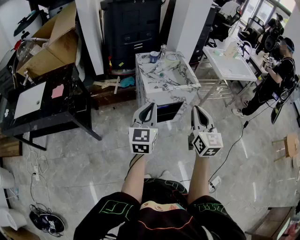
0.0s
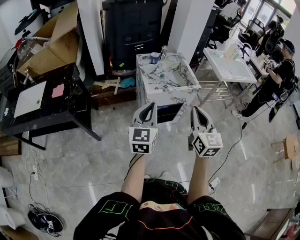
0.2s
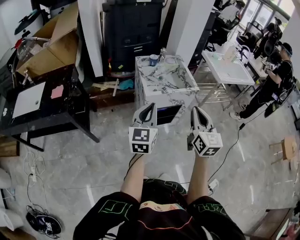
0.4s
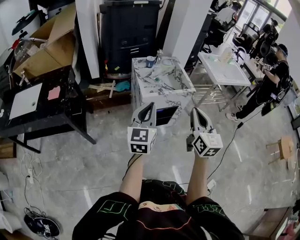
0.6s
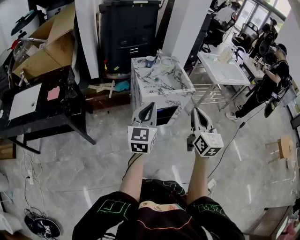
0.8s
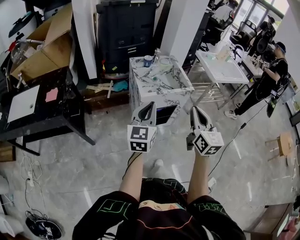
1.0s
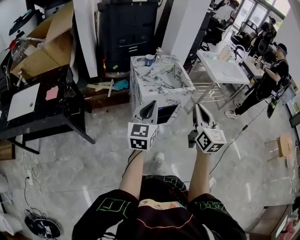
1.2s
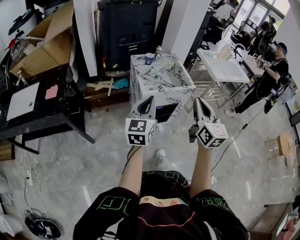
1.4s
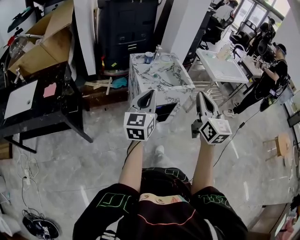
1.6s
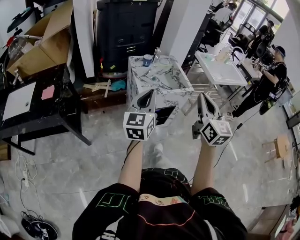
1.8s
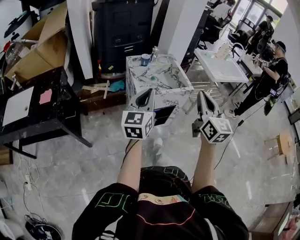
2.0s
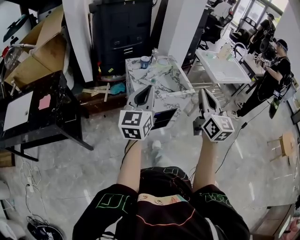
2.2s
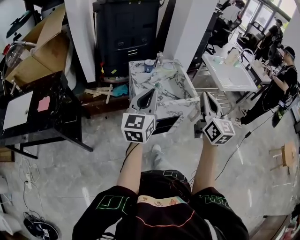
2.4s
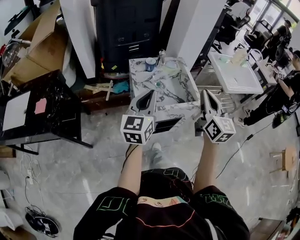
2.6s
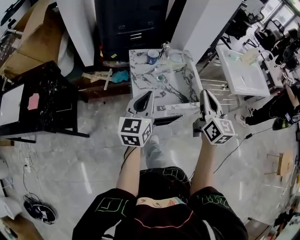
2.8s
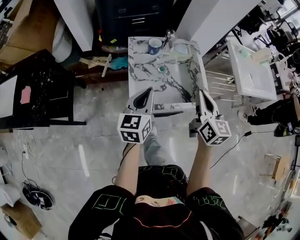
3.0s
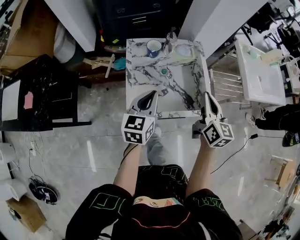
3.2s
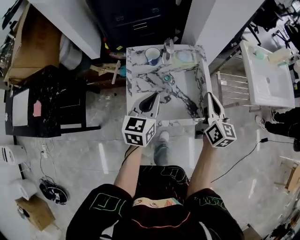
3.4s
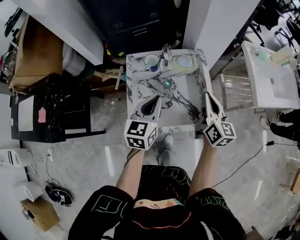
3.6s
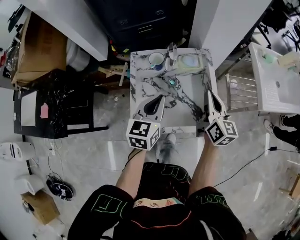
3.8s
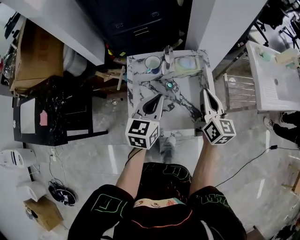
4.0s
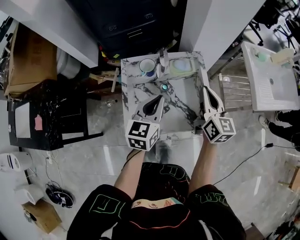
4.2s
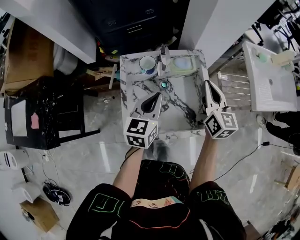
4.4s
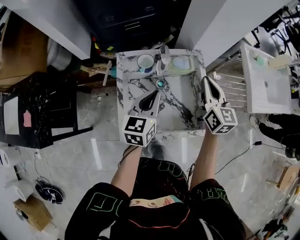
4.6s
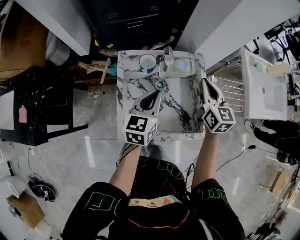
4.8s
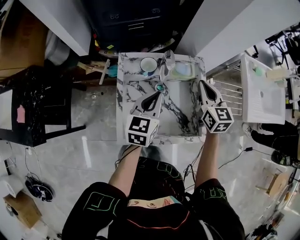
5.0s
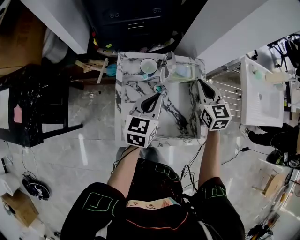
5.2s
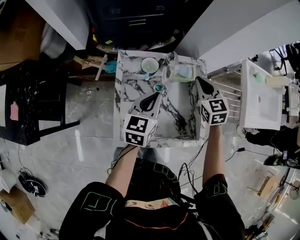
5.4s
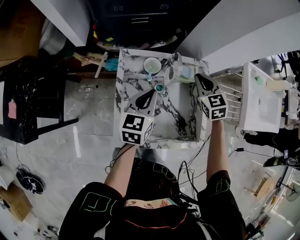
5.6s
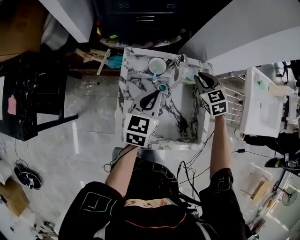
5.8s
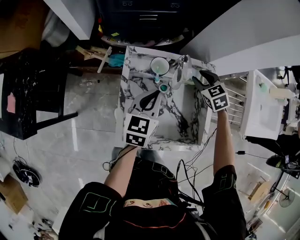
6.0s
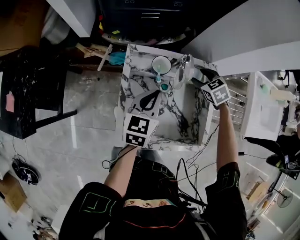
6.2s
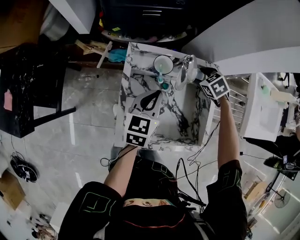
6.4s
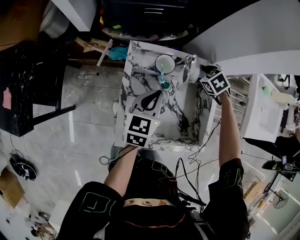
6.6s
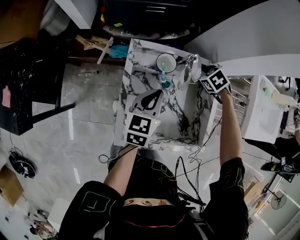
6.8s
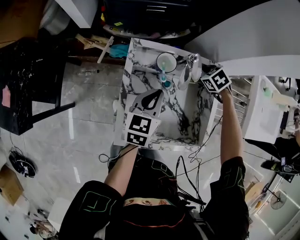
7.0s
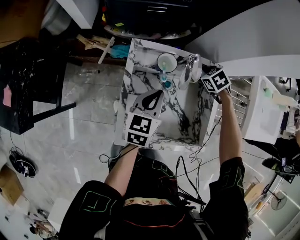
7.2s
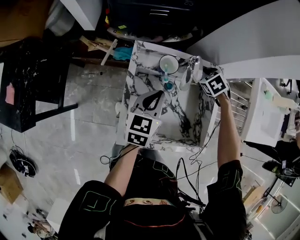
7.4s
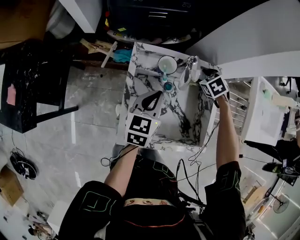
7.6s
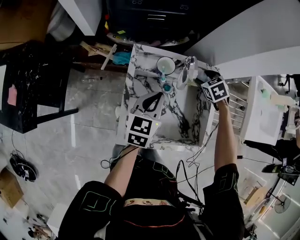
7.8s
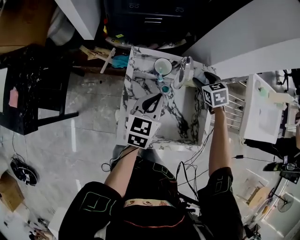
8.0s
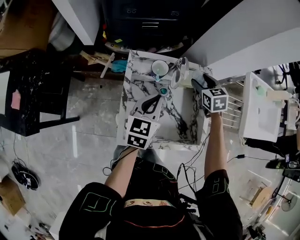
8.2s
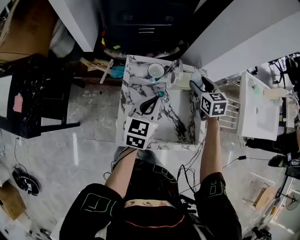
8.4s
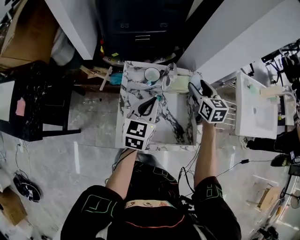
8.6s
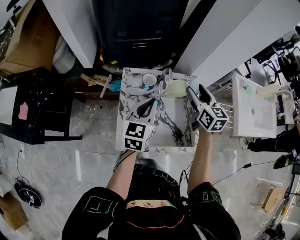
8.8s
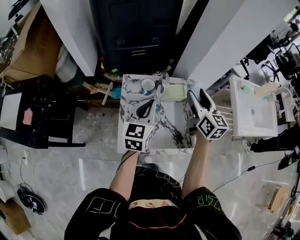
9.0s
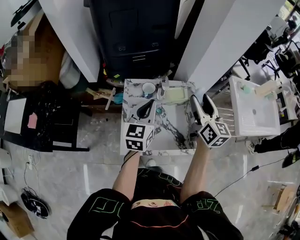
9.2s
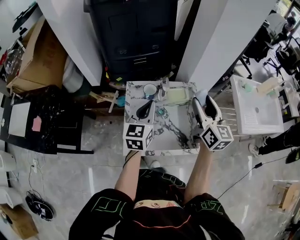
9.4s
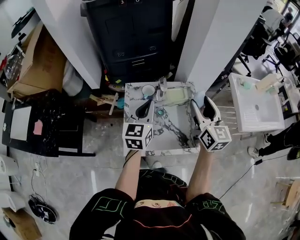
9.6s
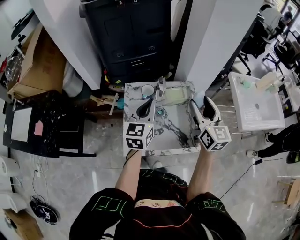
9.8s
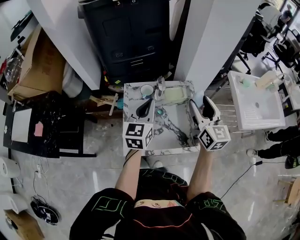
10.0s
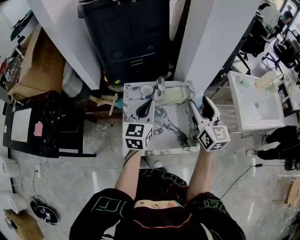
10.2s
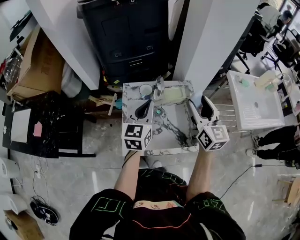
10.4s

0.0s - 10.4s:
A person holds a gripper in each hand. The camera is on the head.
0.0s - 1.4s: The grippers move only a little.
1.4s - 3.0s: The right gripper shifts roughly 35 cm forward; the left gripper travels forward and downward by some 35 cm.
3.0s - 4.4s: The right gripper shifts about 20 cm forward, while the left gripper shifts some 20 cm forward and to the right.
4.4s - 6.0s: The left gripper moves forward, downward and to the left, about 10 cm, while the right gripper travels downward, forward and to the left by some 20 cm, tips its fingers downward by about 40 degrees, and opens its fingers.
6.0s - 7.4s: The right gripper shifts some 5 cm downward, changes its angle by about 20 degrees, and opens.
7.4s - 9.0s: The left gripper goes some 15 cm upward, while the right gripper is displaced upward by some 30 cm, and angles its fingers upward, by roughly 70 degrees.
9.0s - 10.4s: The right gripper travels backward by approximately 5 cm.

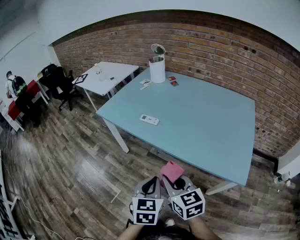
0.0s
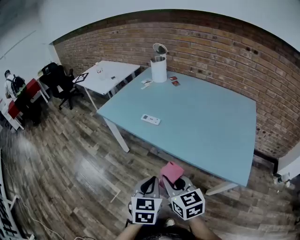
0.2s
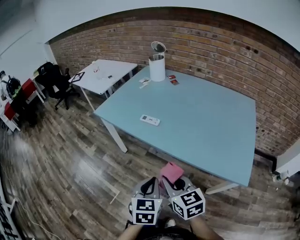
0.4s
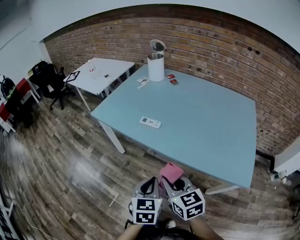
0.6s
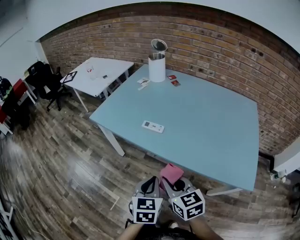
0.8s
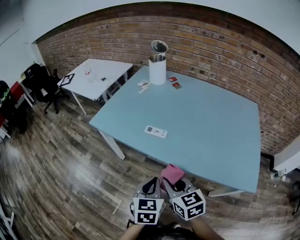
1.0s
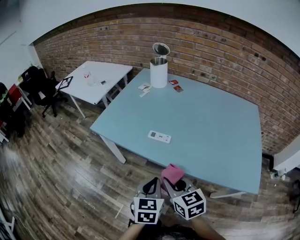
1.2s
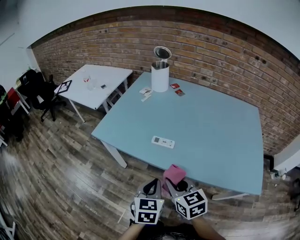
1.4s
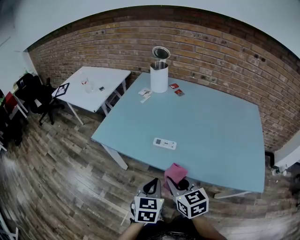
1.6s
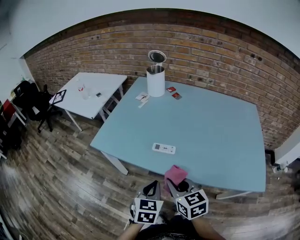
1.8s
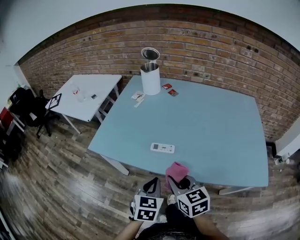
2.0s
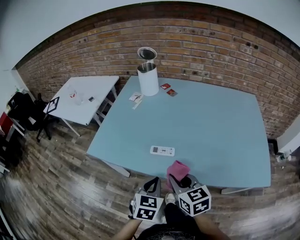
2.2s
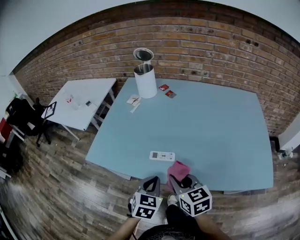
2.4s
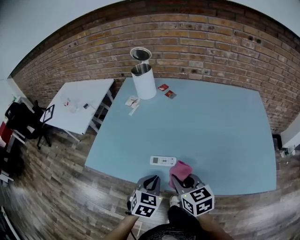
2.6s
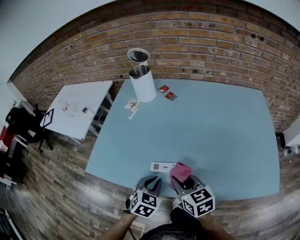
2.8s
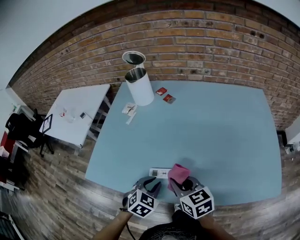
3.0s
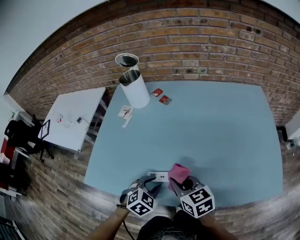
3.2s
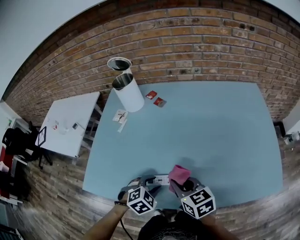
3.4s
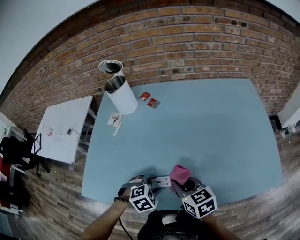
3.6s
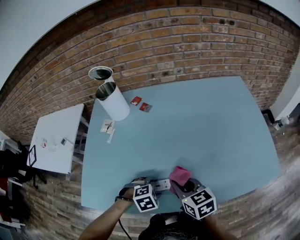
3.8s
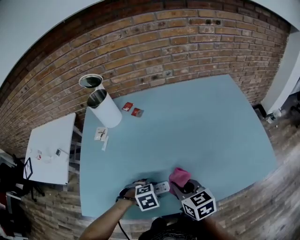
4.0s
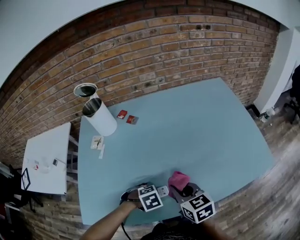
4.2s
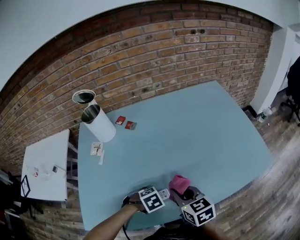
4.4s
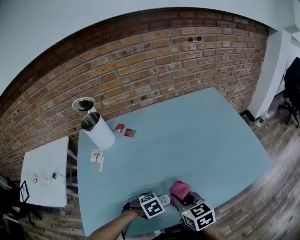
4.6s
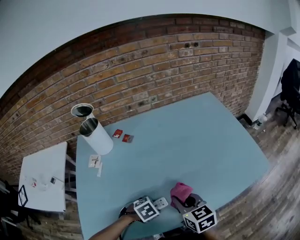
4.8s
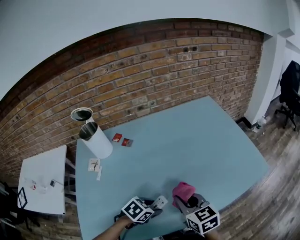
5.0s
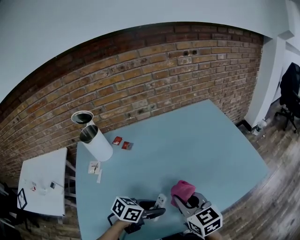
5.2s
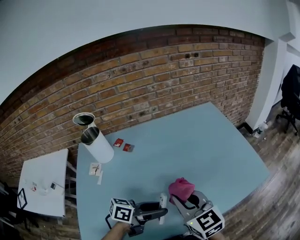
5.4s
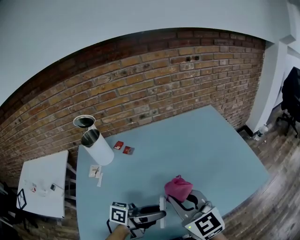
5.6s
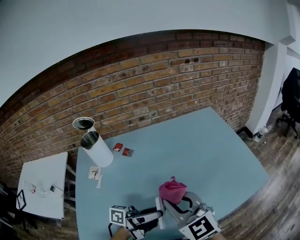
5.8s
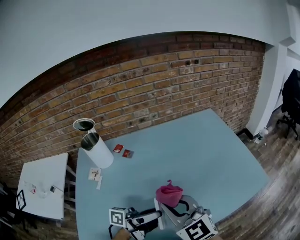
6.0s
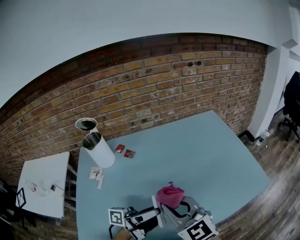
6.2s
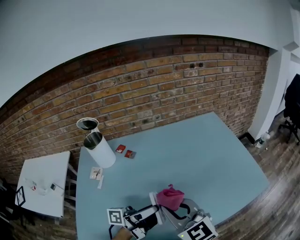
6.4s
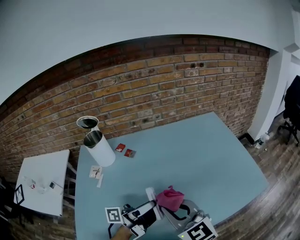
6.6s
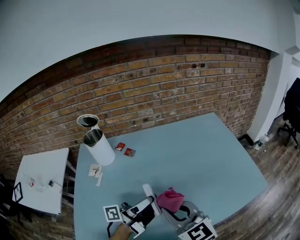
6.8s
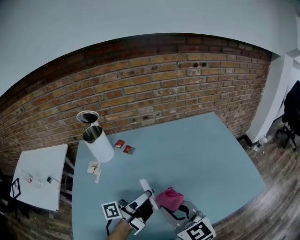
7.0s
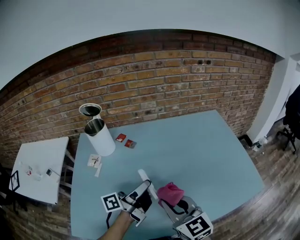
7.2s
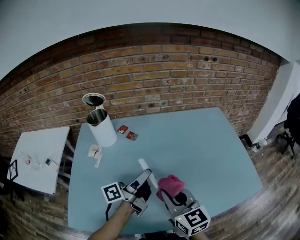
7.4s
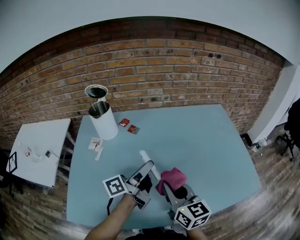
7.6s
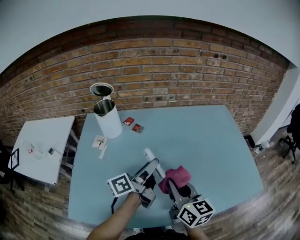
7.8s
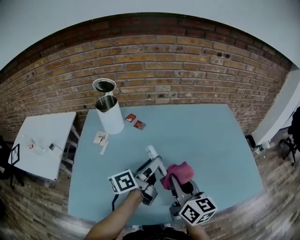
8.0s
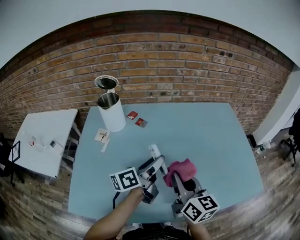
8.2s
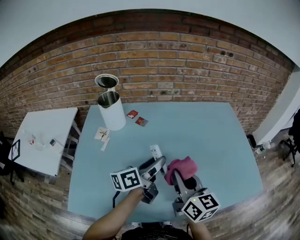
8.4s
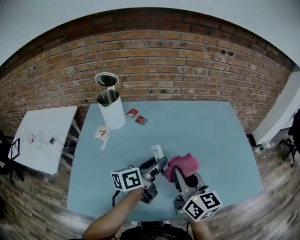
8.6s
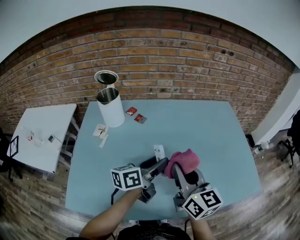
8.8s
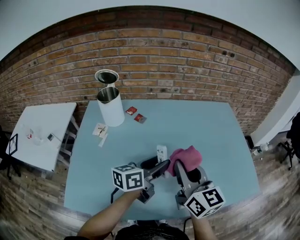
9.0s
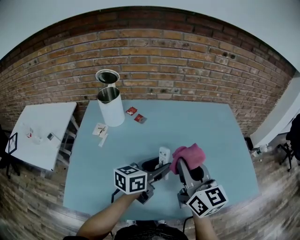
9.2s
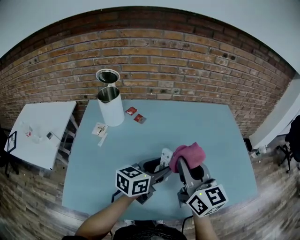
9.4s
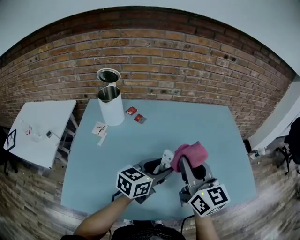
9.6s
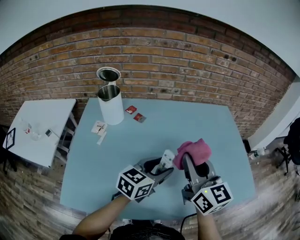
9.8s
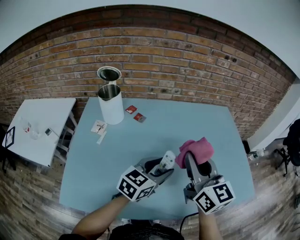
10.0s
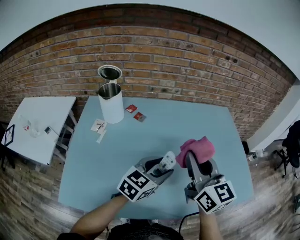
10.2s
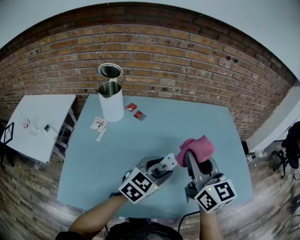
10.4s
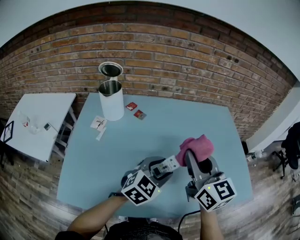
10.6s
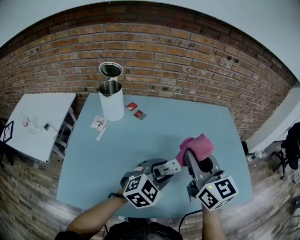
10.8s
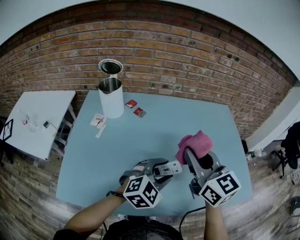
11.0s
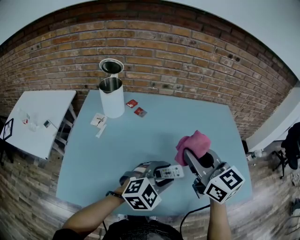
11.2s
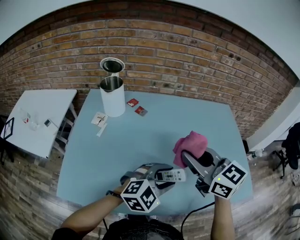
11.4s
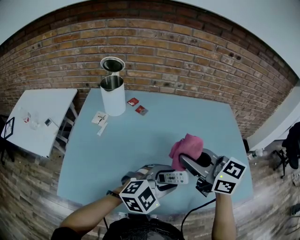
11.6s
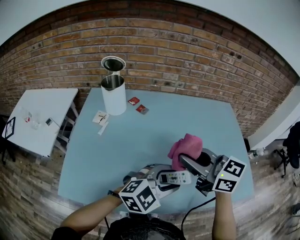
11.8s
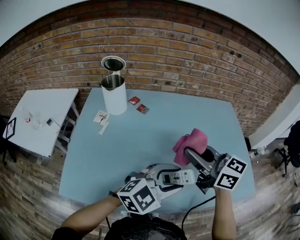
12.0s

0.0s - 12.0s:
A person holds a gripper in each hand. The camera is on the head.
0.0s - 1.6s: Both grippers move forward and to the left, roughly 25 cm.
1.6s - 3.0s: The left gripper heads forward and downward, covering approximately 20 cm, swivels about 40 degrees, and opens up. The right gripper goes some 15 cm forward.
3.0s - 4.4s: The right gripper moves roughly 5 cm, and turns by some 30 degrees. The left gripper heads downward, covering approximately 5 cm, rotates roughly 60 degrees, and opens up.
4.4s - 6.0s: Both grippers move upward, roughly 20 cm. The right gripper changes its angle by about 40 degrees. The left gripper tips its fingers upward by approximately 100 degrees.
6.0s - 7.6s: The right gripper is displaced downward by some 5 cm, and changes its angle by approximately 30 degrees, while the left gripper moves forward and to the left, some 15 cm, and turns by some 40 degrees.
7.6s - 9.0s: The left gripper rotates some 40 degrees; the right gripper is displaced upward by approximately 5 cm.
9.0s - 10.4s: The left gripper rotates around the line of its fingers by roughly 40 degrees, clockwise from behind. The right gripper changes place by some 5 cm.
10.4s - 12.0s: The right gripper rotates roughly 30 degrees; the left gripper heads backward, covering roughly 10 cm, and rotates about 20 degrees.

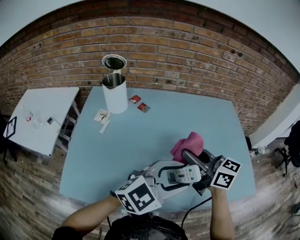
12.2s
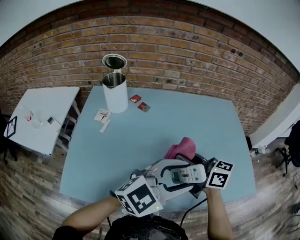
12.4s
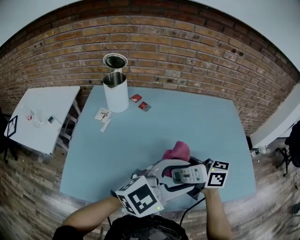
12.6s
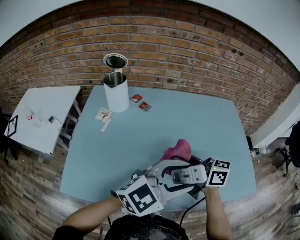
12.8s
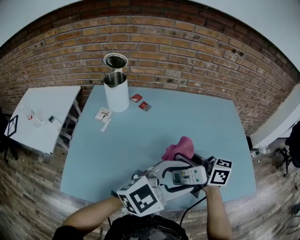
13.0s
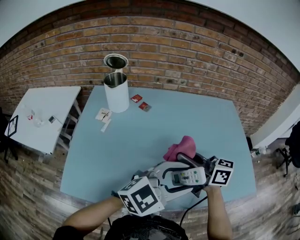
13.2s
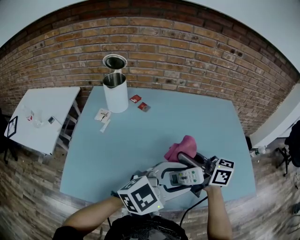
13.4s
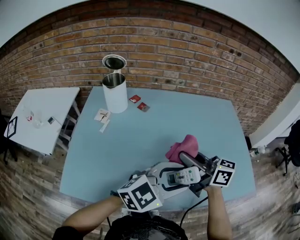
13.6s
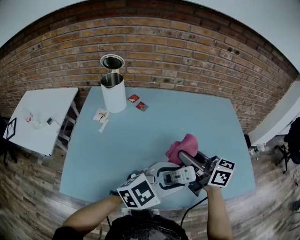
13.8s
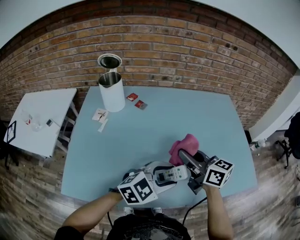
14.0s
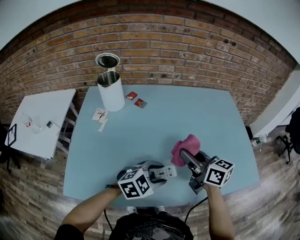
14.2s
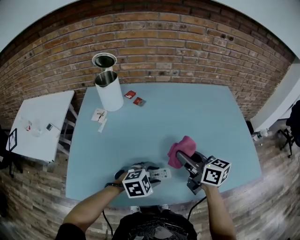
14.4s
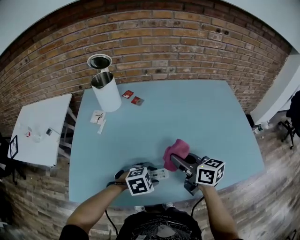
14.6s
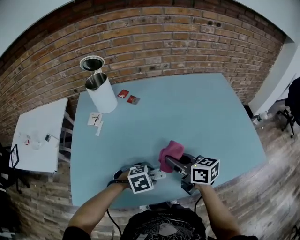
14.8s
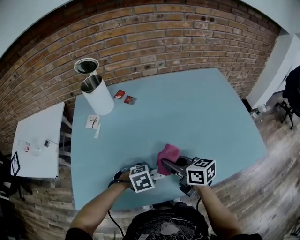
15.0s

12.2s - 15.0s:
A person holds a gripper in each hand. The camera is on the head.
12.2s - 13.6s: The grippers make only small movements.
13.6s - 15.0s: The right gripper shifts approximately 15 cm downward, and turns by some 20 degrees, while the left gripper heads downward, covering roughly 25 cm, and tips its fingers downward by roughly 60 degrees.
